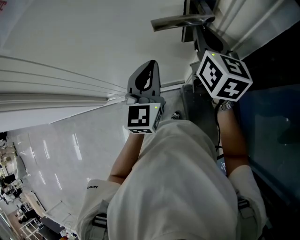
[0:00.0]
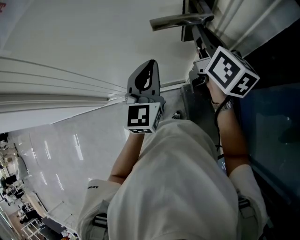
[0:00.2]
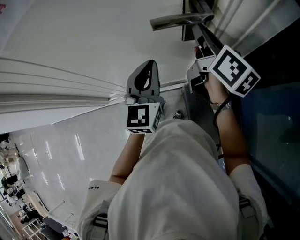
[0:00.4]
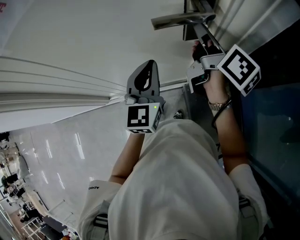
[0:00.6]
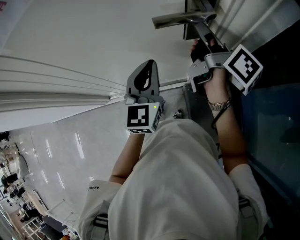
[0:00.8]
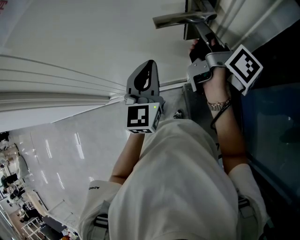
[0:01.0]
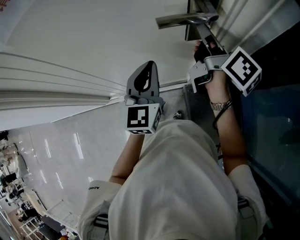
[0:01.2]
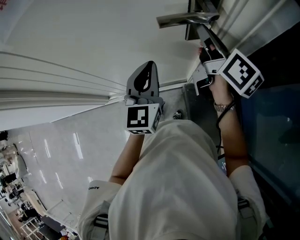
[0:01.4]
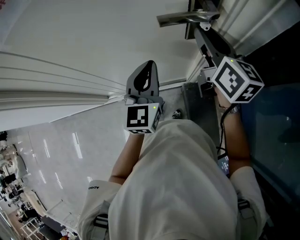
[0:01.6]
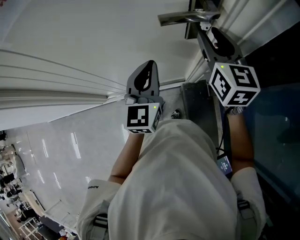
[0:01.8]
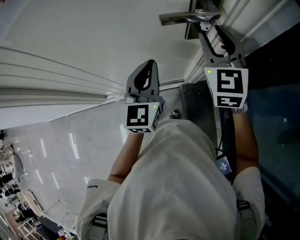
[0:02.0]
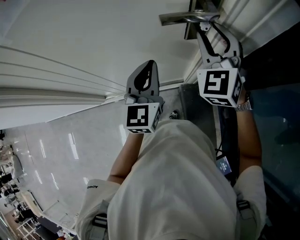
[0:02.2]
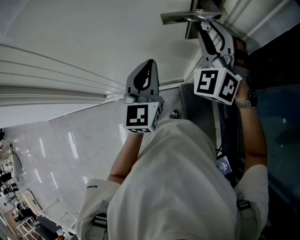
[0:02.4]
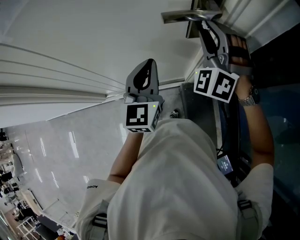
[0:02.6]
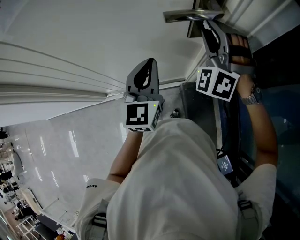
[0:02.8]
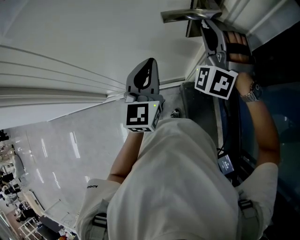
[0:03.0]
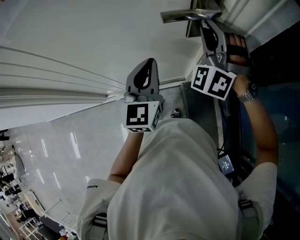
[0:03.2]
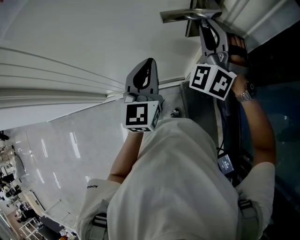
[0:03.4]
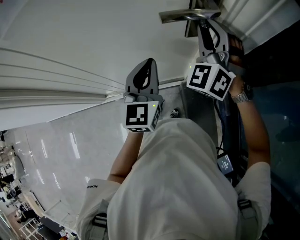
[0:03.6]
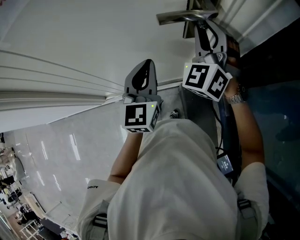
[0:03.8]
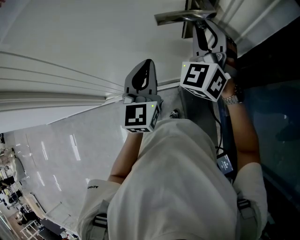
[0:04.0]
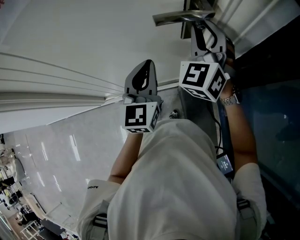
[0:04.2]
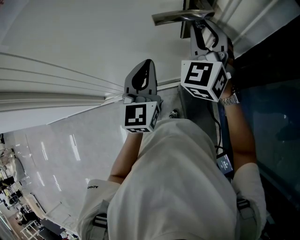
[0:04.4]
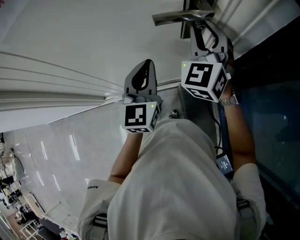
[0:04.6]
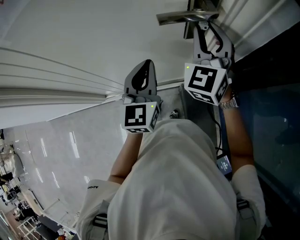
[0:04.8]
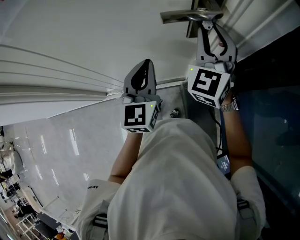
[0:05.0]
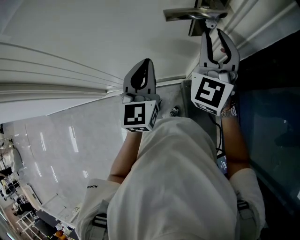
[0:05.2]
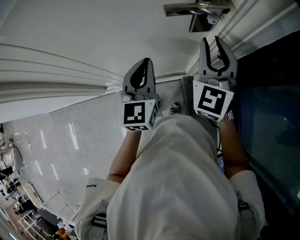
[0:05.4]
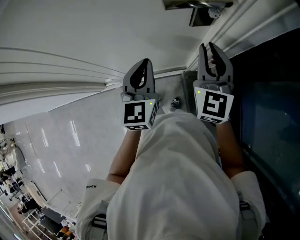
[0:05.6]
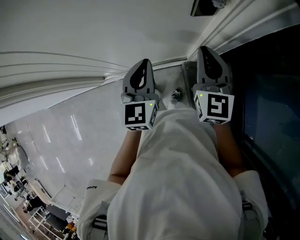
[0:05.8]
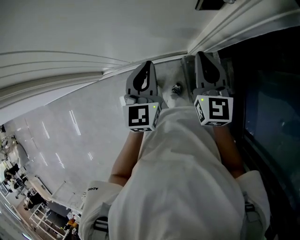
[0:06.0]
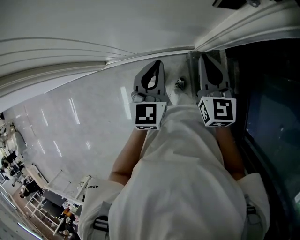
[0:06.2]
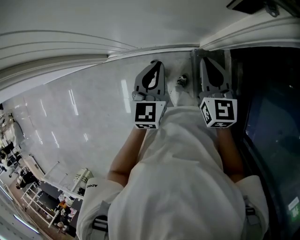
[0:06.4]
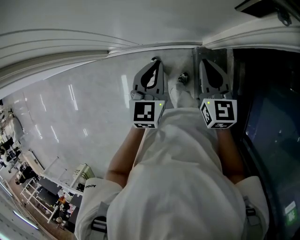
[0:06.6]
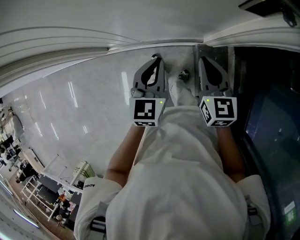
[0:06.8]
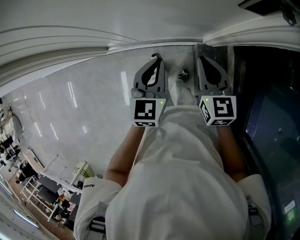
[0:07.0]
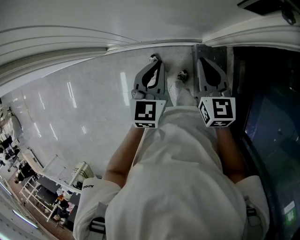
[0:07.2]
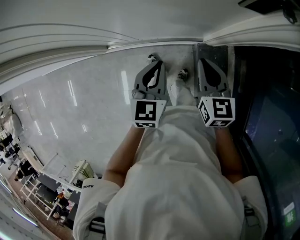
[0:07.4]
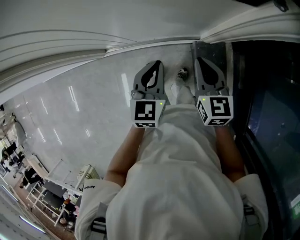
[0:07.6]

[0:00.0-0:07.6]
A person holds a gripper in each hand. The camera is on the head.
0.0 to 1.6 s: The right gripper opens.
1.6 to 3.0 s: The right gripper twists some 100 degrees counterclockwise, seen from behind.
3.0 to 4.6 s: The right gripper twists roughly 40 degrees clockwise, seen from behind.
4.6 to 6.0 s: The left gripper goes about 10 cm downward; the right gripper goes approximately 15 cm downward and backward, changes its angle by approximately 40 degrees, and closes up.
6.0 to 7.6 s: The right gripper goes some 15 cm downward and to the left. The left gripper travels downward by roughly 10 cm.

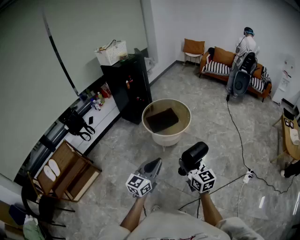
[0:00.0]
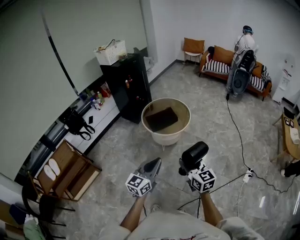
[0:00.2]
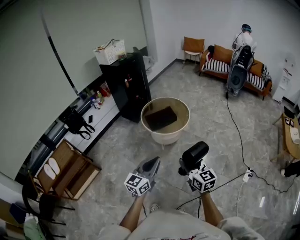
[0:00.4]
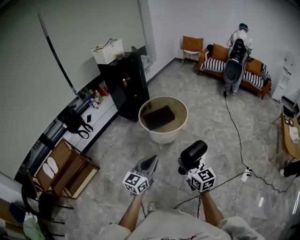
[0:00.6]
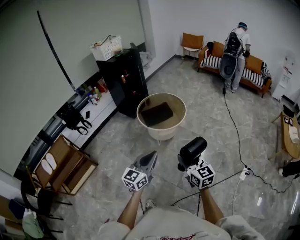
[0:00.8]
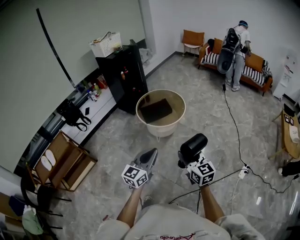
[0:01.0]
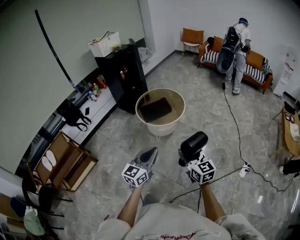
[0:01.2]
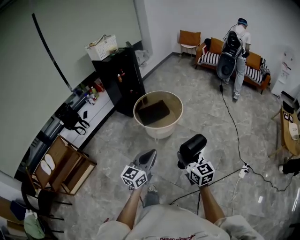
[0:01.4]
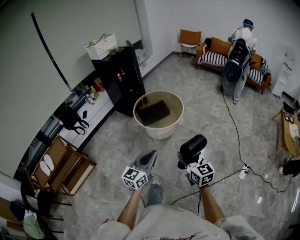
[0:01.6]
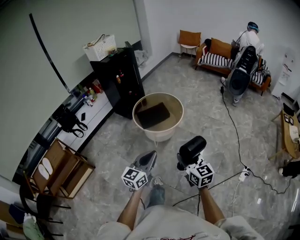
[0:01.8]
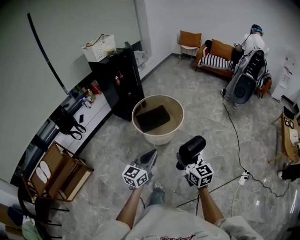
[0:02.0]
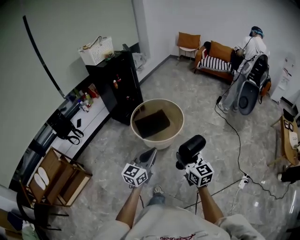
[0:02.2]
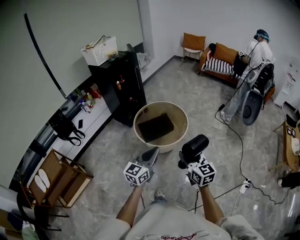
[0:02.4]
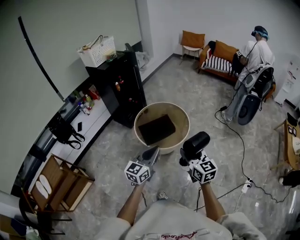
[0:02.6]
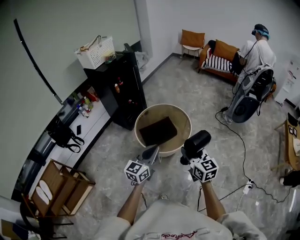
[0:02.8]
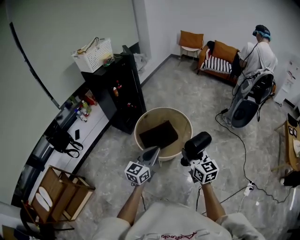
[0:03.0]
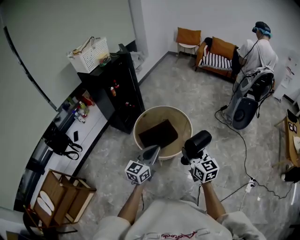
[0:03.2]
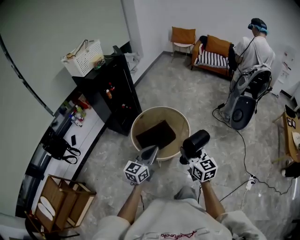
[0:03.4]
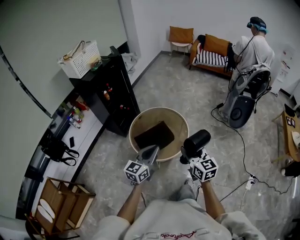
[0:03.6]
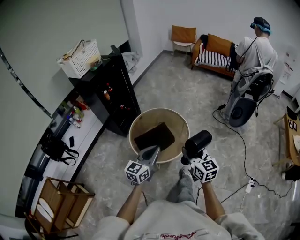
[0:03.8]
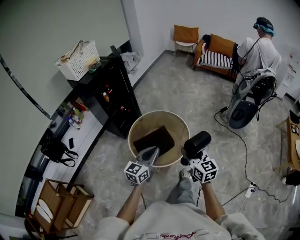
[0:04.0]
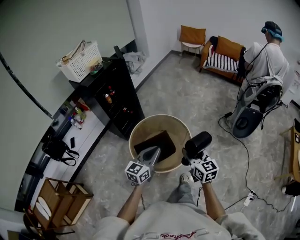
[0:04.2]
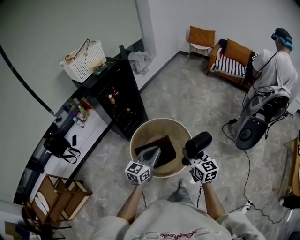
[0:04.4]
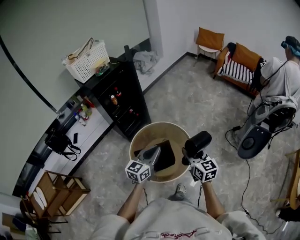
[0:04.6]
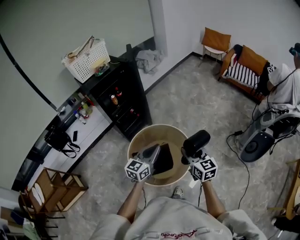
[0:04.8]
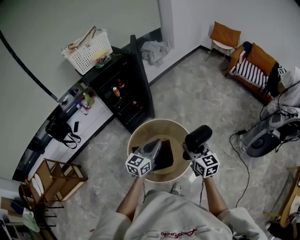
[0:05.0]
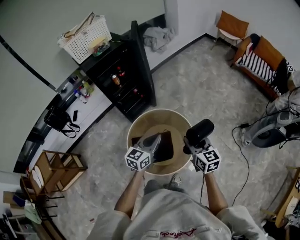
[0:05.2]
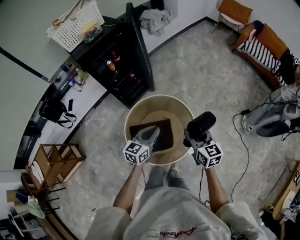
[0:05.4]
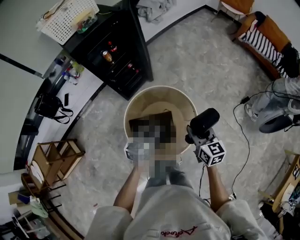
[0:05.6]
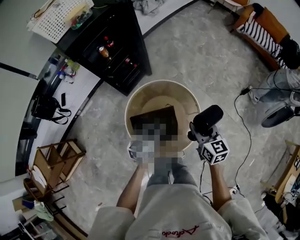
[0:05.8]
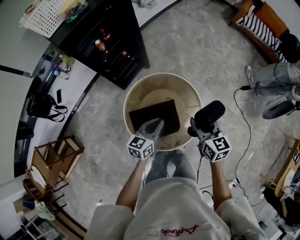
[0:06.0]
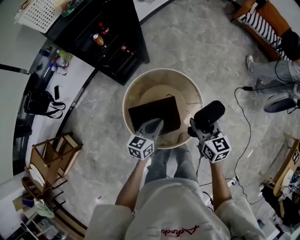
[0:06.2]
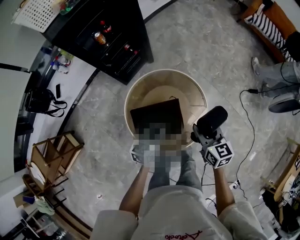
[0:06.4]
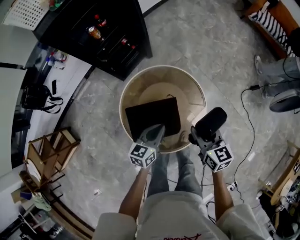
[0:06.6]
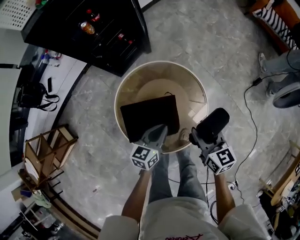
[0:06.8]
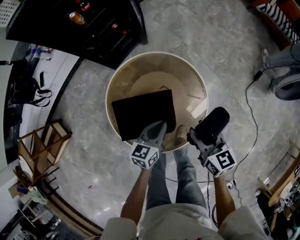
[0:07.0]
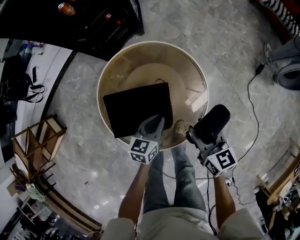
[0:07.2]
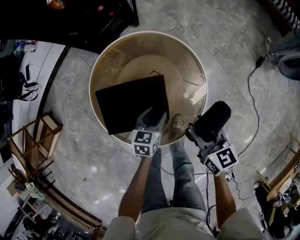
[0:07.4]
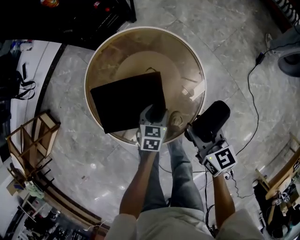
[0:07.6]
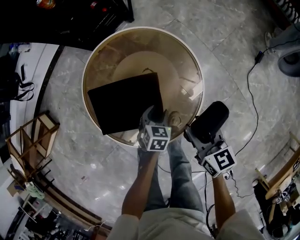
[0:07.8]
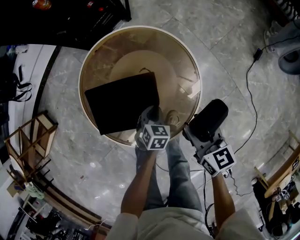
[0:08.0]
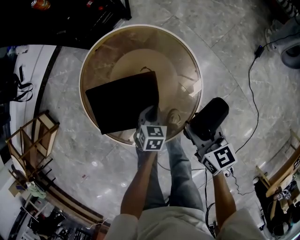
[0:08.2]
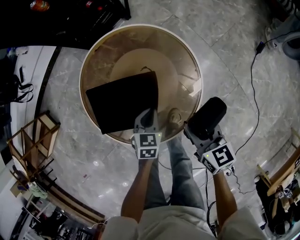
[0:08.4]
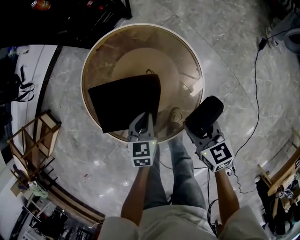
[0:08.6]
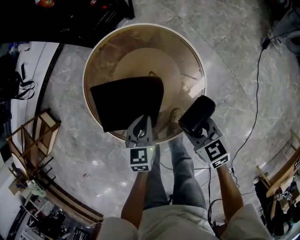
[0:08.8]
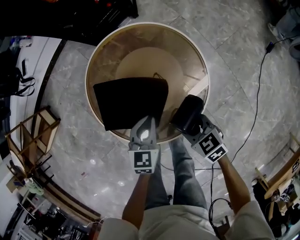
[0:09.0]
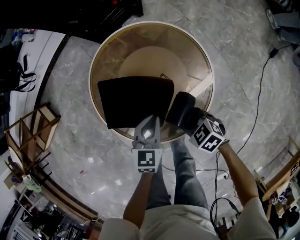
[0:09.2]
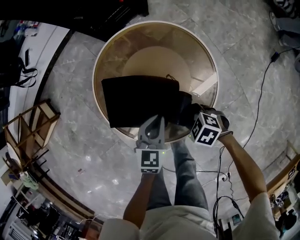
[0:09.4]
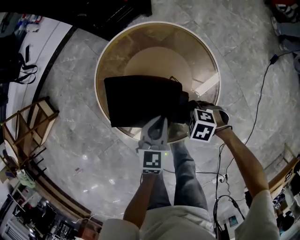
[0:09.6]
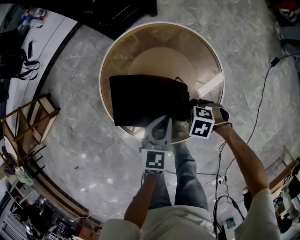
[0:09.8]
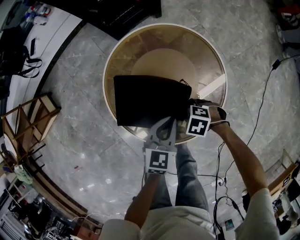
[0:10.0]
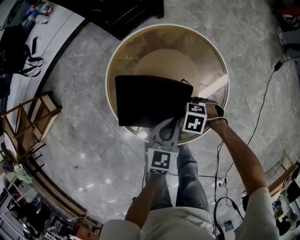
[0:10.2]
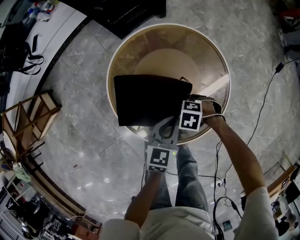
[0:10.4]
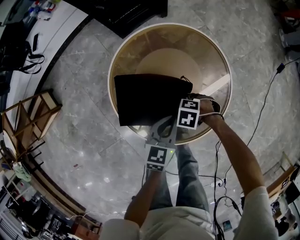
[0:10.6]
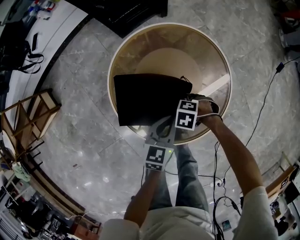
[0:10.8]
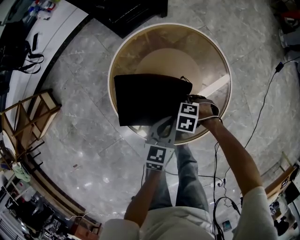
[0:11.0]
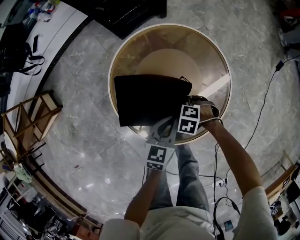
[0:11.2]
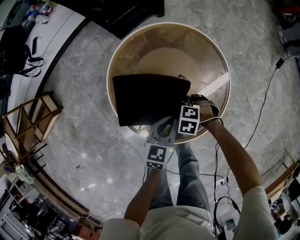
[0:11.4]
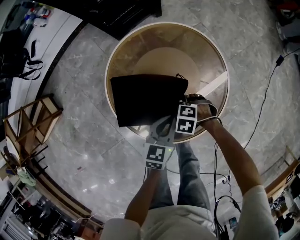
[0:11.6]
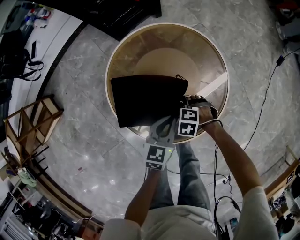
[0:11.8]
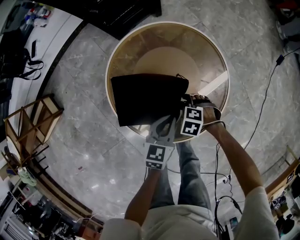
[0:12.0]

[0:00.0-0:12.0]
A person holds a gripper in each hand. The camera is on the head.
0.0 to 1.6 s: Both grippers travel together to the right, approximately 10 cm.
1.6 to 3.0 s: Both grippers move forward, about 35 cm.
3.0 to 4.4 s: The two grippers go about 25 cm forward.
4.4 to 6.0 s: Both grippers travel together forward and downward, some 25 cm. The left gripper rotates approximately 20 degrees.
6.0 to 7.6 s: The grippers both shift downward by approximately 30 cm. The left gripper tilts its fingers approximately 30 degrees downward, and opens up.
7.6 to 9.0 s: The right gripper is displaced downward by about 5 cm, and swivels about 40 degrees. The left gripper moves upward, approximately 10 cm, and closes.
9.0 to 10.4 s: The right gripper moves downward, approximately 10 cm, and rotates roughly 60 degrees.
10.4 to 12.0 s: The right gripper opens up.

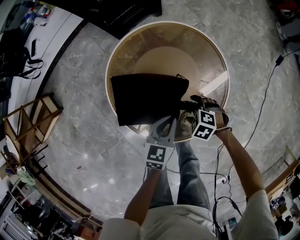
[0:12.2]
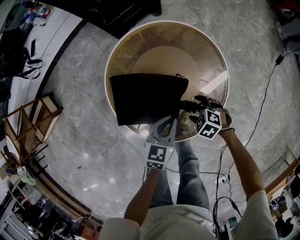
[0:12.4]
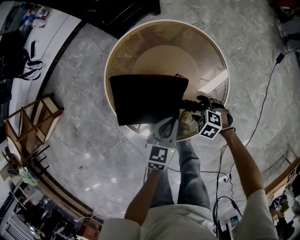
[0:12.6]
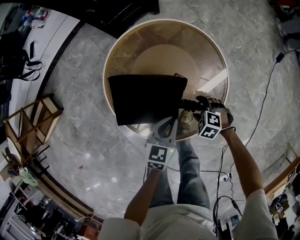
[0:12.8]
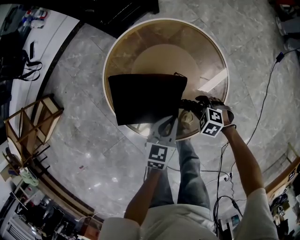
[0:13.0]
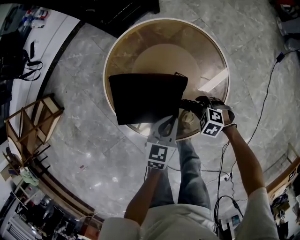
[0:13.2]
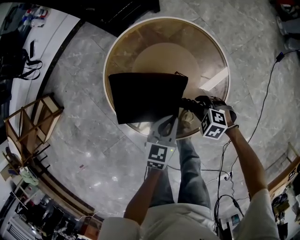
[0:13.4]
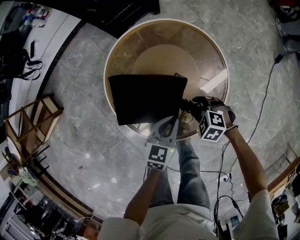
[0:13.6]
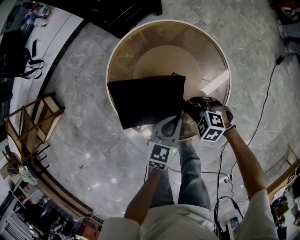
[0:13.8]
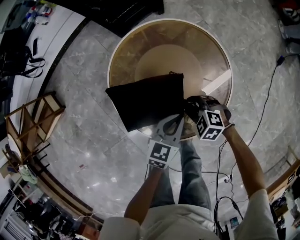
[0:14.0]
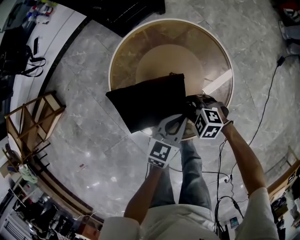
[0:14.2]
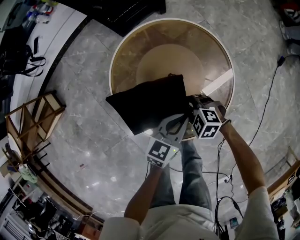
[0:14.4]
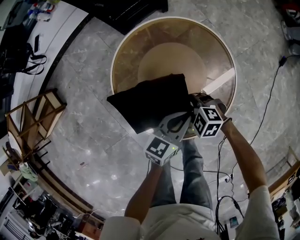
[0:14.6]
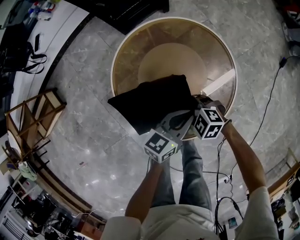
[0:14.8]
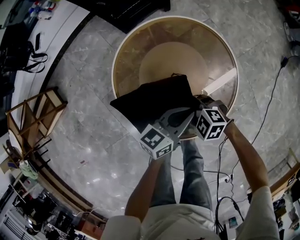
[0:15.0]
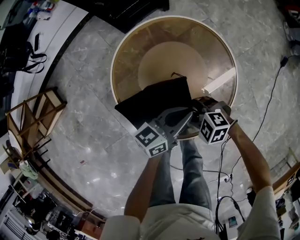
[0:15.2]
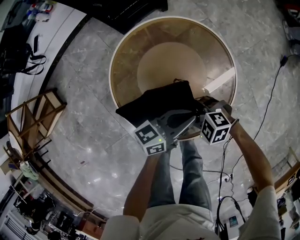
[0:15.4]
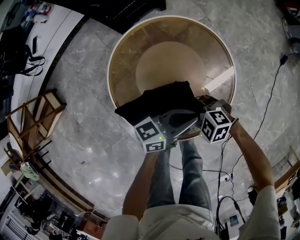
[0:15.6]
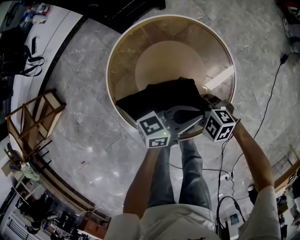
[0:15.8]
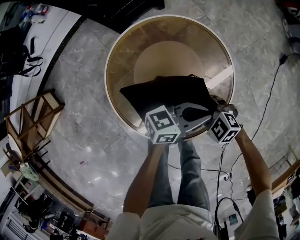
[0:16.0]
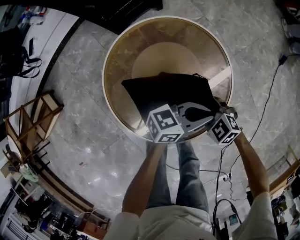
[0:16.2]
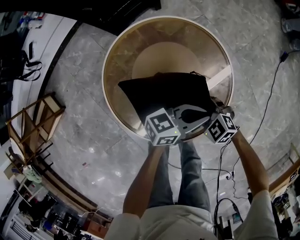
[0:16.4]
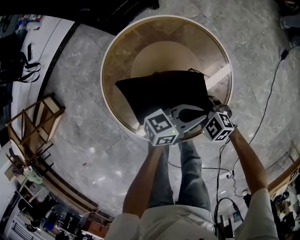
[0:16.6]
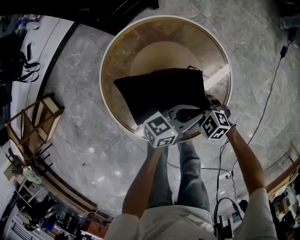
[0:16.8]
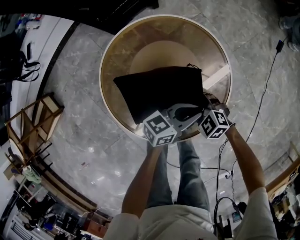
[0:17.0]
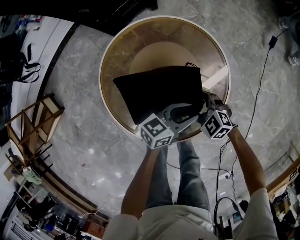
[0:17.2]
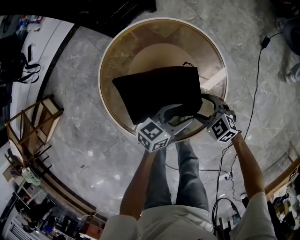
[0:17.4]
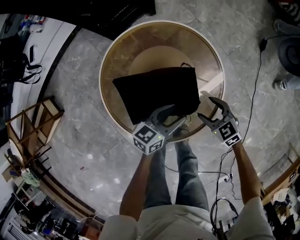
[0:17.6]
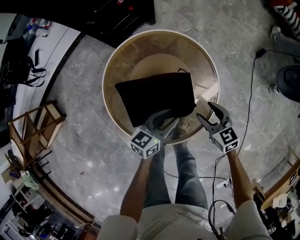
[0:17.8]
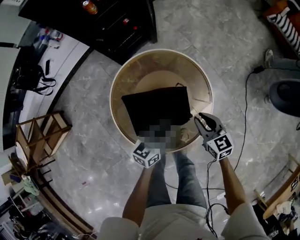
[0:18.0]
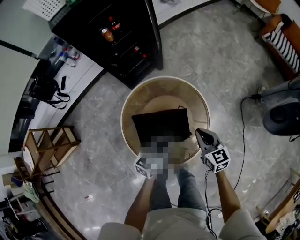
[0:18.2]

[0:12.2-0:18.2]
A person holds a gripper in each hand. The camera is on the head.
12.2 to 13.8 s: The right gripper closes its fingers.
13.8 to 15.2 s: The left gripper shifts by about 5 cm, and turns by approximately 30 degrees. Meanwhile the right gripper changes place by approximately 5 cm, and rotates some 20 degrees.
15.2 to 16.6 s: The left gripper changes place by approximately 10 cm, and turns by roughly 20 degrees, while the right gripper shifts by approximately 10 cm, and rotates about 20 degrees.
16.6 to 18.2 s: The right gripper moves upward, about 20 cm, turns by about 50 degrees, and closes its fingers. The left gripper moves upward, about 15 cm, changes its angle by approximately 40 degrees, and opens and closes again.
